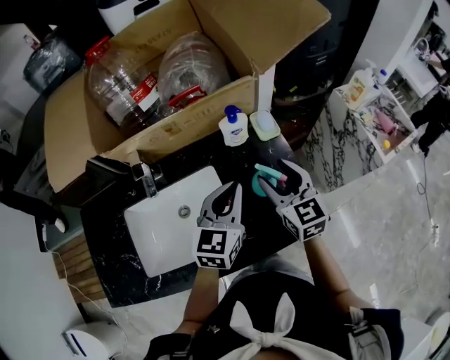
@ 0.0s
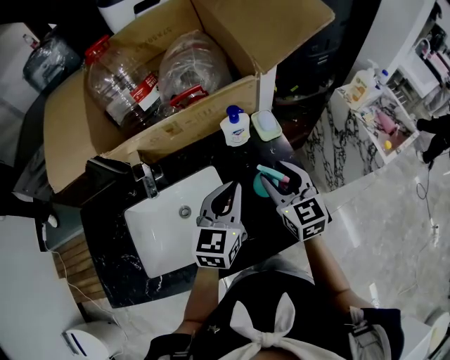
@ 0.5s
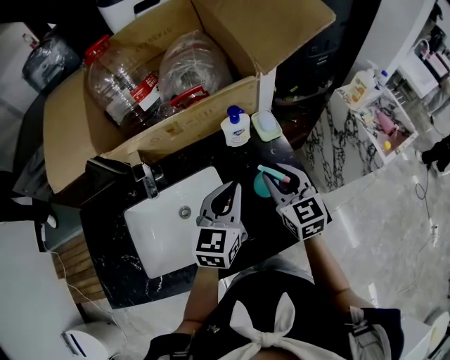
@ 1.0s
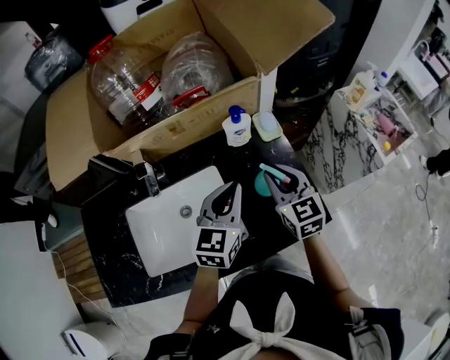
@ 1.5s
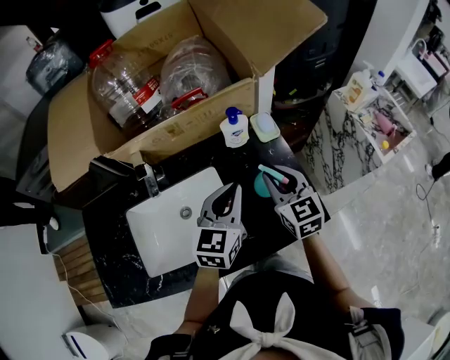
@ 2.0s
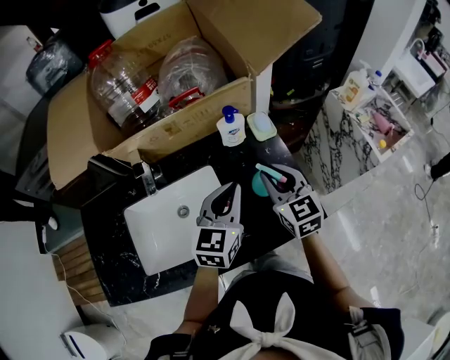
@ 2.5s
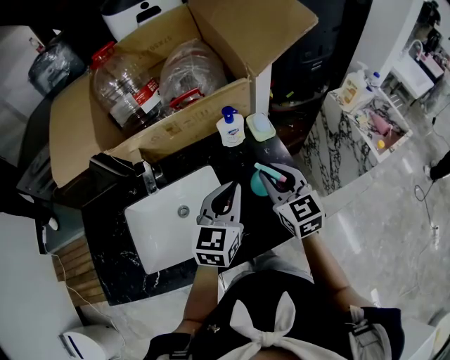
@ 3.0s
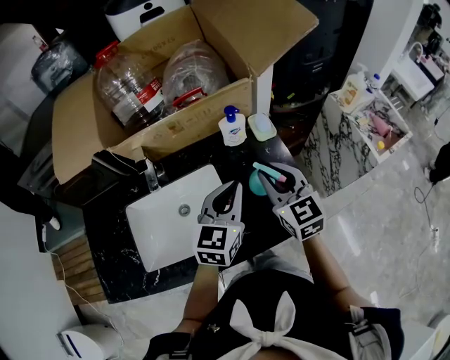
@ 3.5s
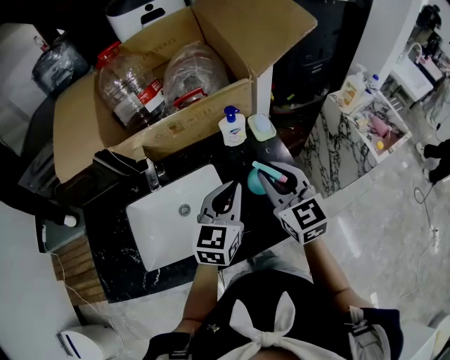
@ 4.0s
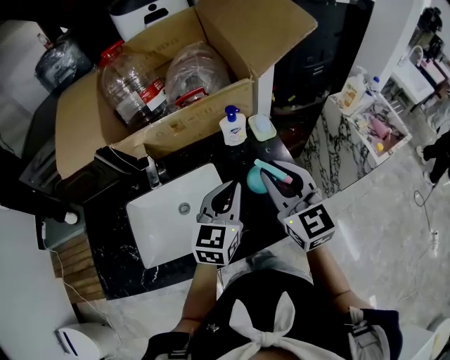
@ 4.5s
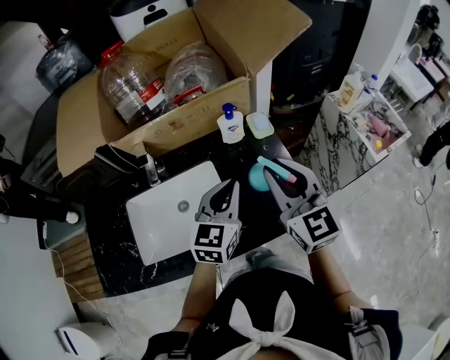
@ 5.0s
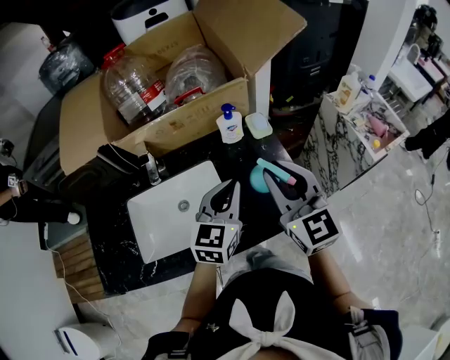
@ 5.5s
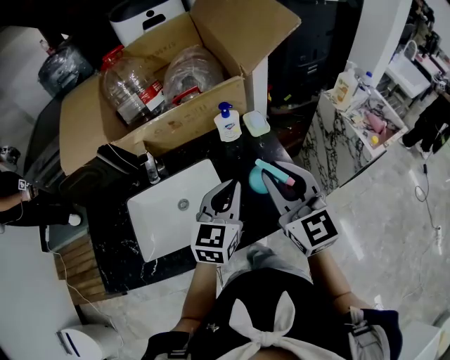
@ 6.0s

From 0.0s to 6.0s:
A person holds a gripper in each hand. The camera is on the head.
From 0.0s to 2.0s: The right gripper closes its fingers.
From 2.0s to 4.0s: The right gripper travels upward by roughly 5 cm.
From 4.0s to 6.0s: The right gripper travels upward and backward by about 10 cm.

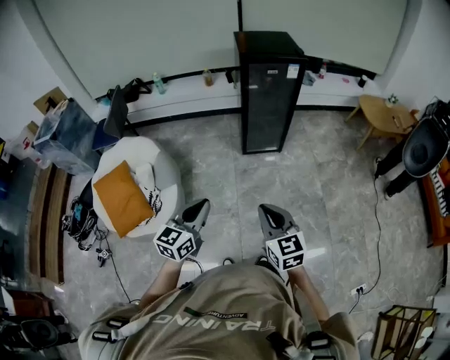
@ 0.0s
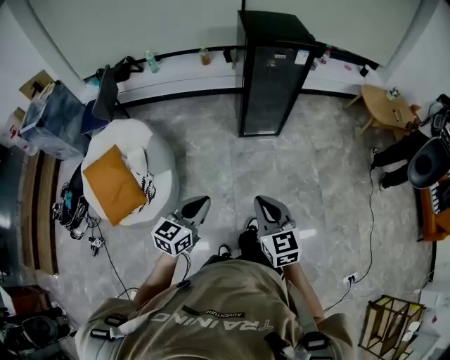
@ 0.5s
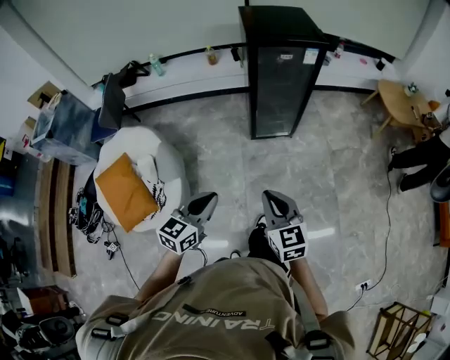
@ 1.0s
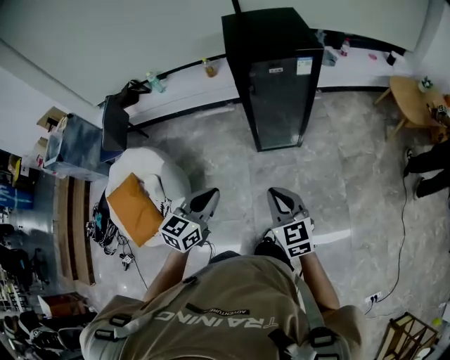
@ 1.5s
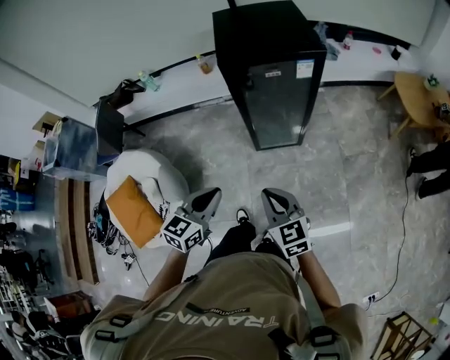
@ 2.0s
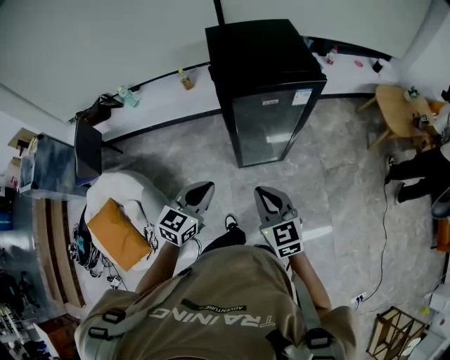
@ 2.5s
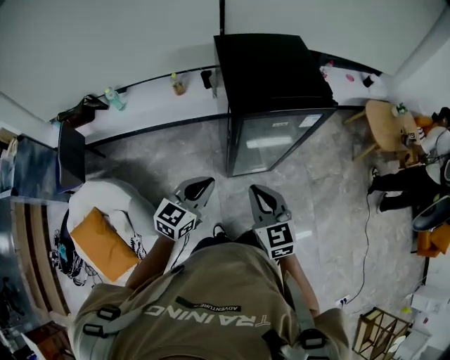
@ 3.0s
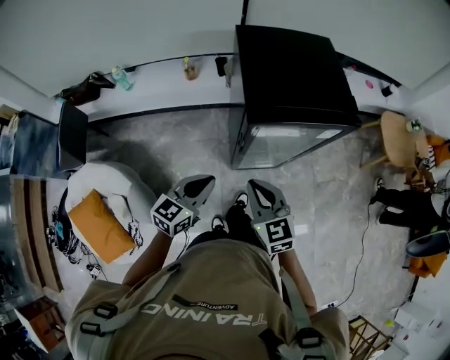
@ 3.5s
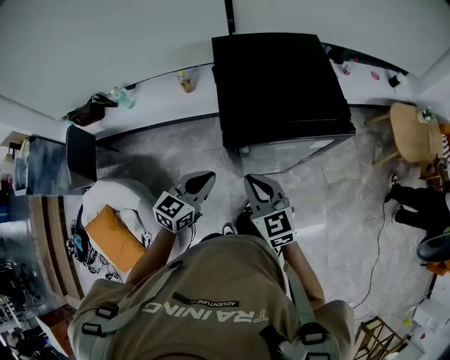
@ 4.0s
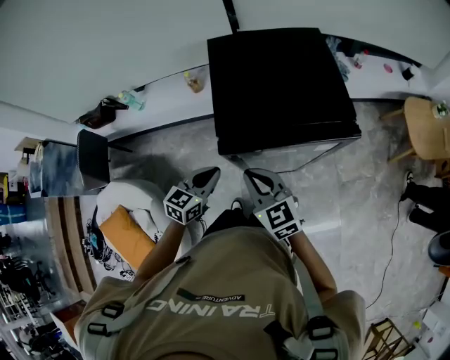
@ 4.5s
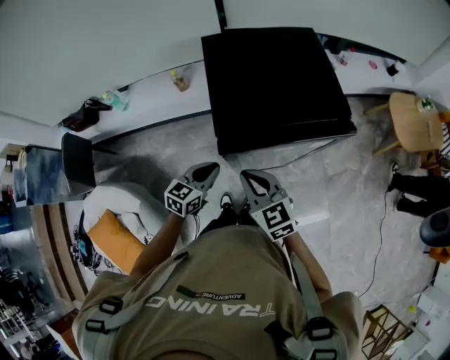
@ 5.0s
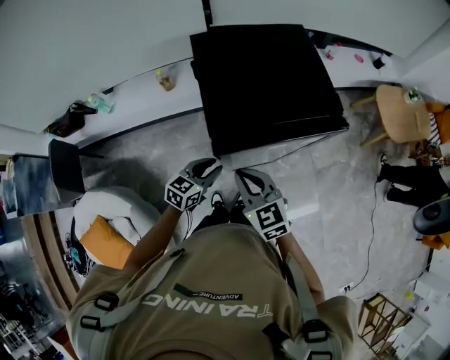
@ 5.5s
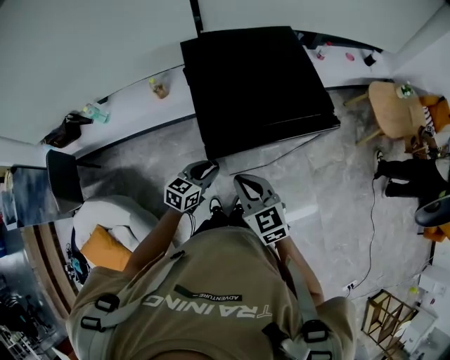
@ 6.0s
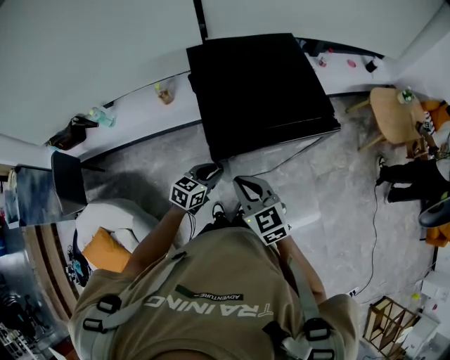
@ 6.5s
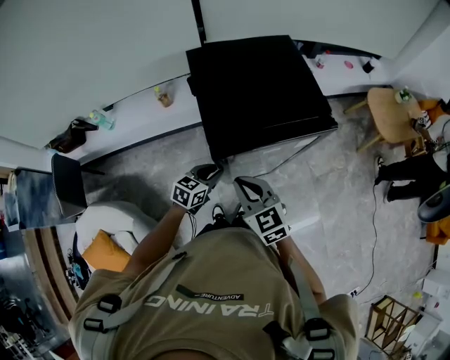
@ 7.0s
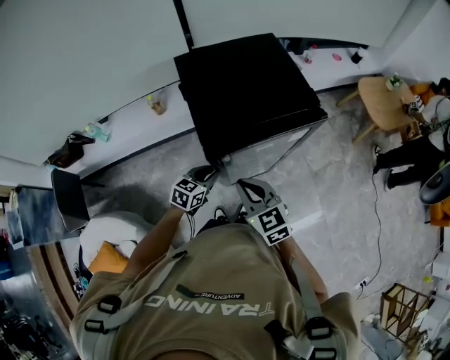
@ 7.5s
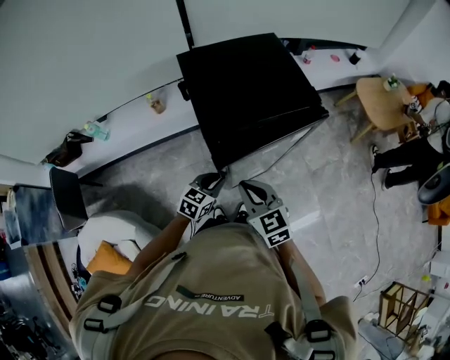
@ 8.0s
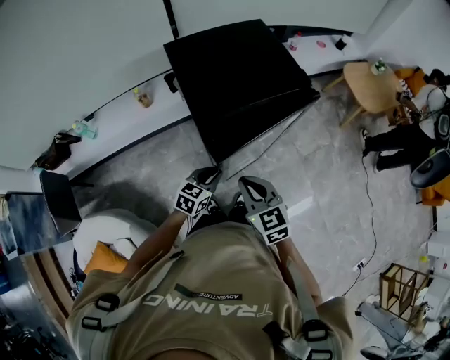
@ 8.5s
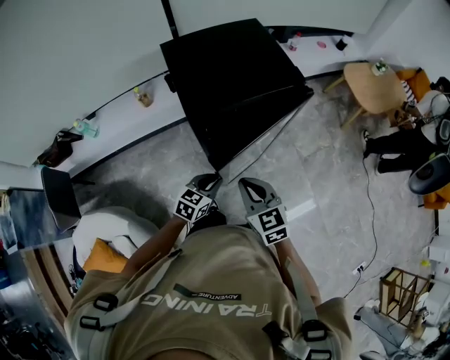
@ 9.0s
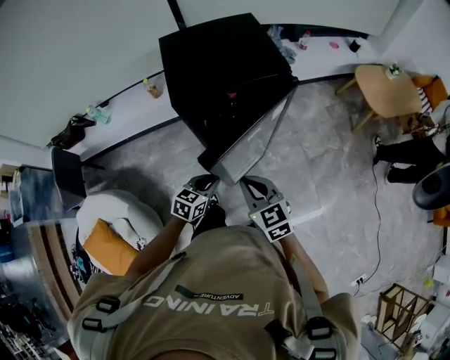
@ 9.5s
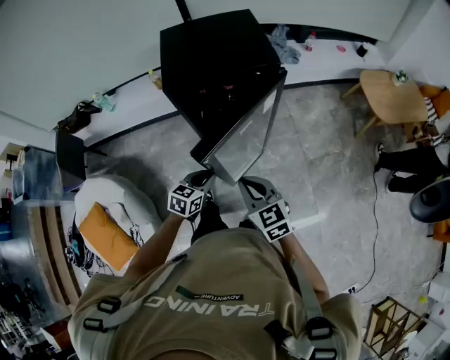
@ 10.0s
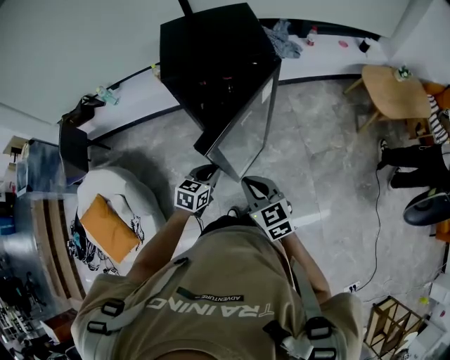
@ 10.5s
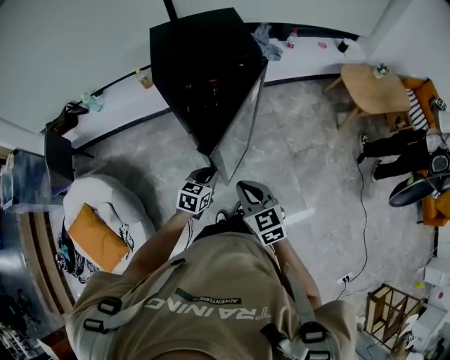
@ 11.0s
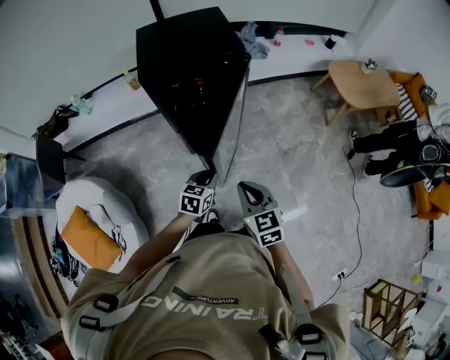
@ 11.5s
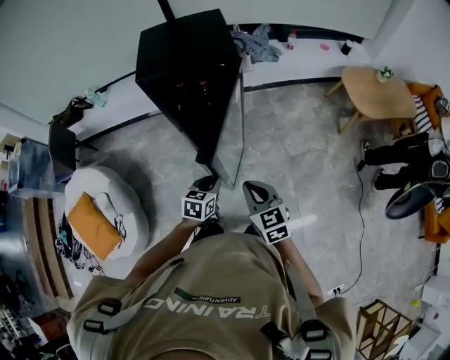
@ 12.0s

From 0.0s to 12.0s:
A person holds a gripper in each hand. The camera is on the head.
From 0.0s to 2.0s: The two grippers go approximately 35 cm forward.
From 2.0s to 4.0s: The two grippers go approximately 30 cm forward.
From 4.0s to 6.0s: The left gripper shifts approximately 15 cm downward and forward, and opens its fingers.
From 6.0s to 8.0s: There are only small adjustments of the grippers.
From 8.0s to 10.0s: The right gripper shifts some 20 cm to the right and backward. Meanwhile the left gripper shifts about 15 cm backward and to the right.
From 10.0s to 12.0s: The two grippers go roughly 15 cm to the right and backward.

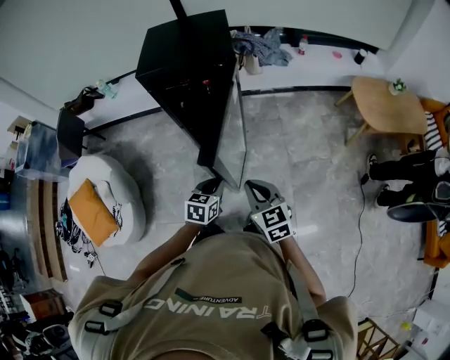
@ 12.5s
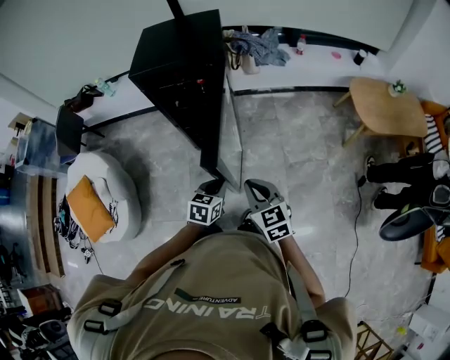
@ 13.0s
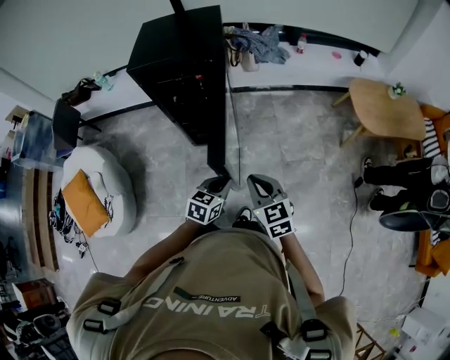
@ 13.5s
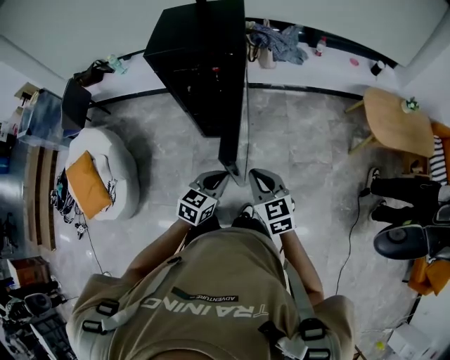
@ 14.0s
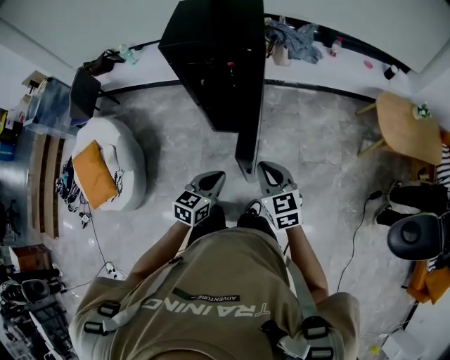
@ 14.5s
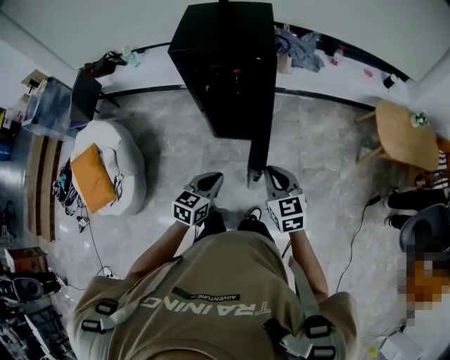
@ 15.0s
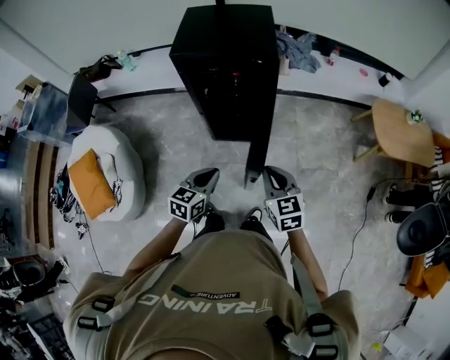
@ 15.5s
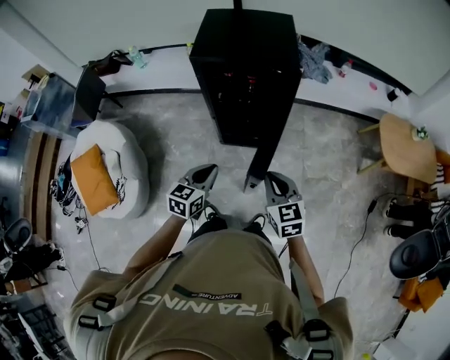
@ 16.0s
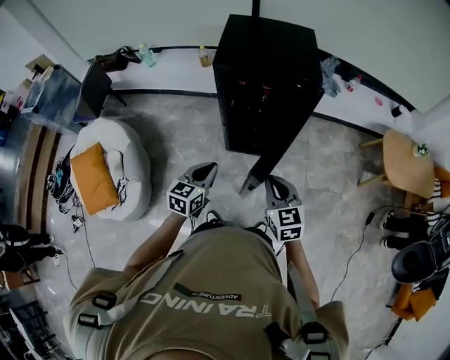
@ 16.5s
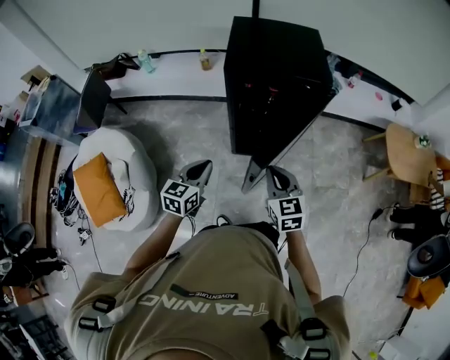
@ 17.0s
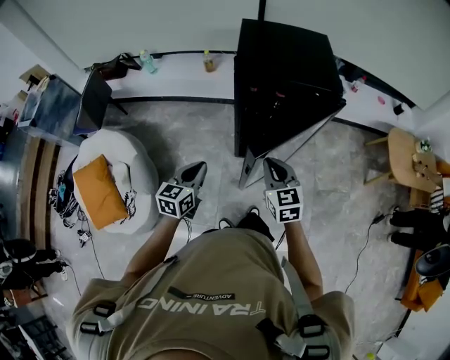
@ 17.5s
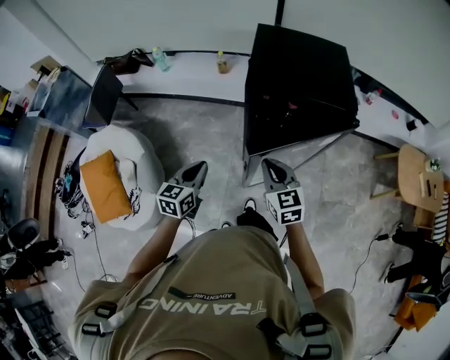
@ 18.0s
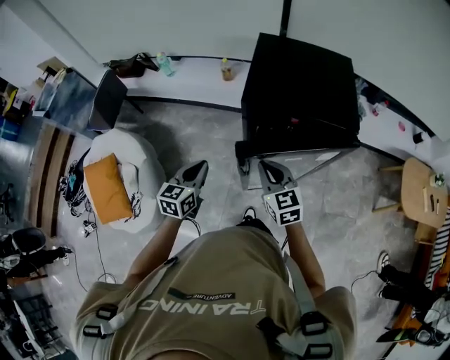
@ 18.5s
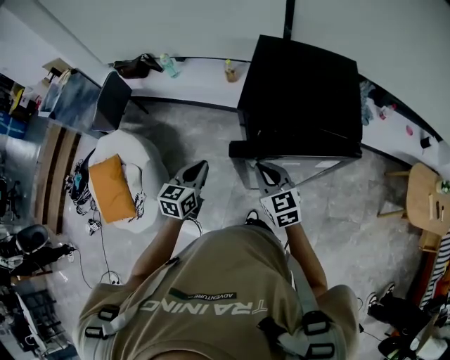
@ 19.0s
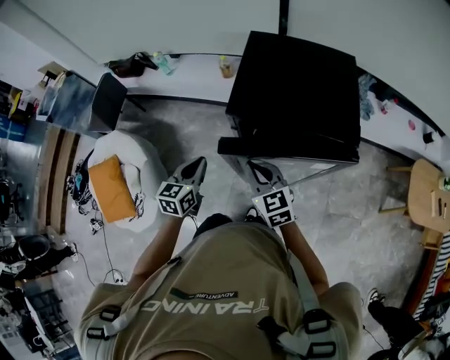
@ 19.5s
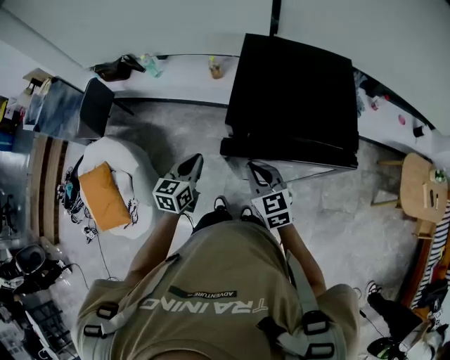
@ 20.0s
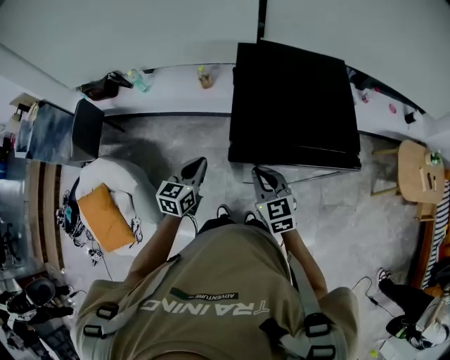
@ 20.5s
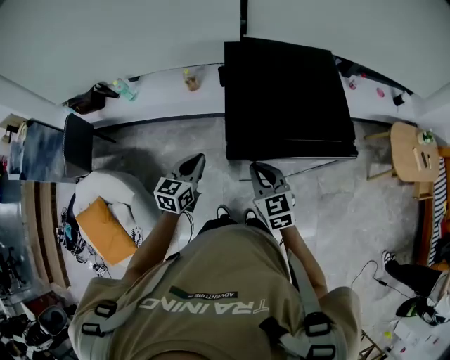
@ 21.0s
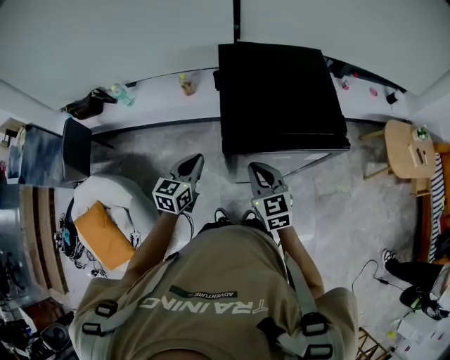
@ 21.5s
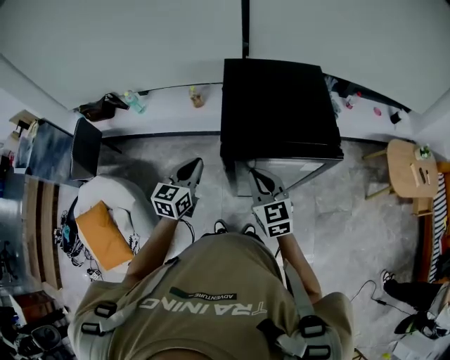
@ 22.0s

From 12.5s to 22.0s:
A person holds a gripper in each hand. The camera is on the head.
From 12.5s to 14.5s: The left gripper heads upward, covering roughly 5 cm, and goes to the right and returns, some 10 cm each way.
From 14.5s to 16.5s: The right gripper moves to the left, approximately 15 cm. The left gripper shifts some 20 cm to the left and forward.
From 16.5s to 18.0s: The left gripper goes approximately 15 cm to the left and forward, while the right gripper moves forward and to the left, some 20 cm.
From 18.0s to 20.0s: The two grippers go roughly 15 cm forward.
From 20.0s to 22.0s: Both grippers move upward, about 5 cm.
